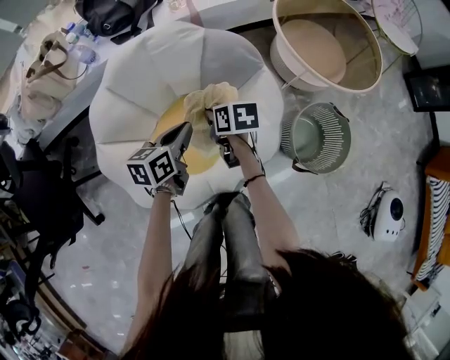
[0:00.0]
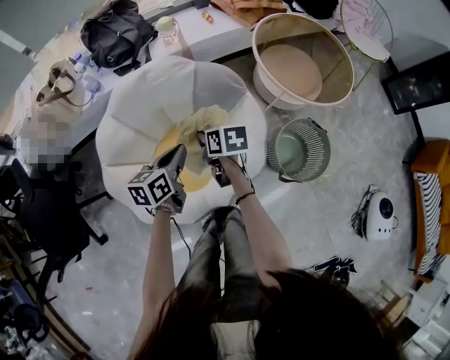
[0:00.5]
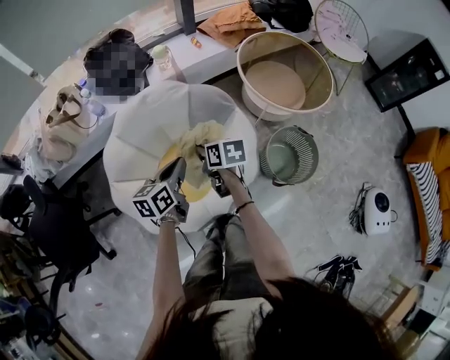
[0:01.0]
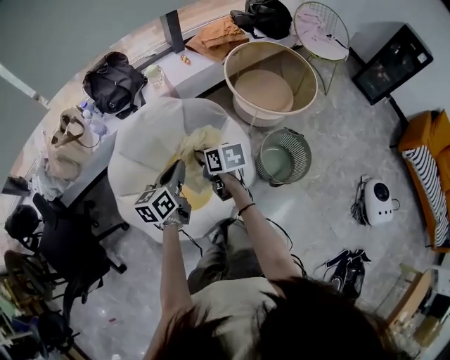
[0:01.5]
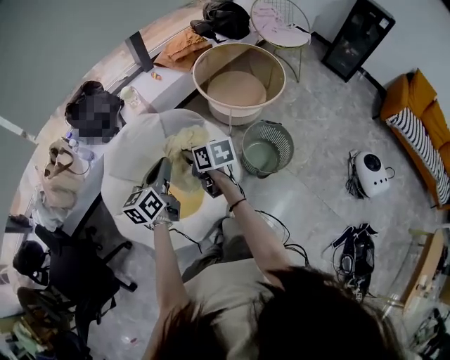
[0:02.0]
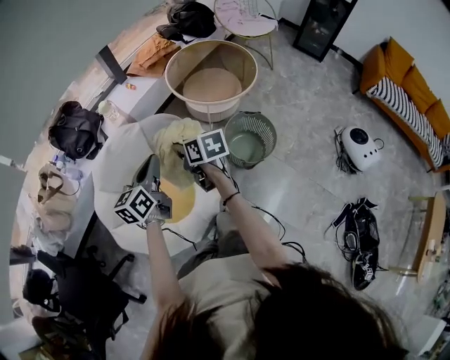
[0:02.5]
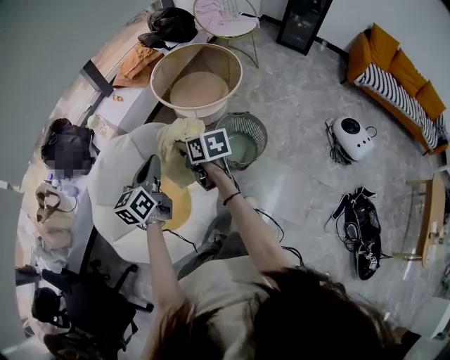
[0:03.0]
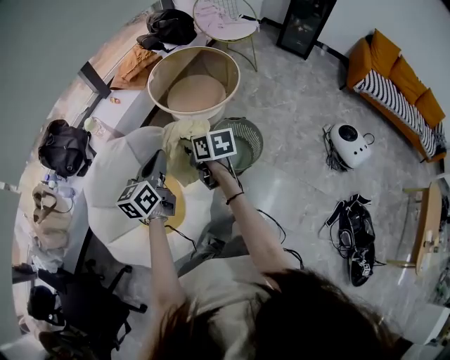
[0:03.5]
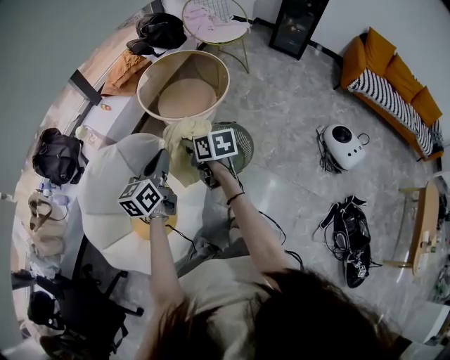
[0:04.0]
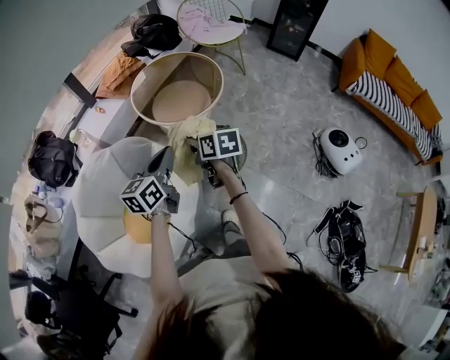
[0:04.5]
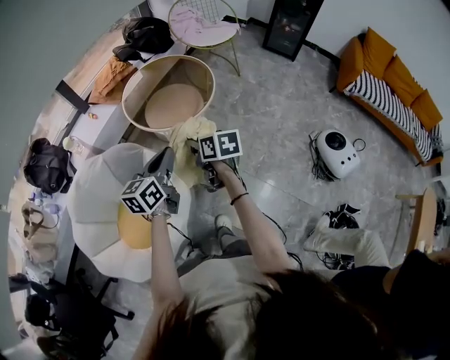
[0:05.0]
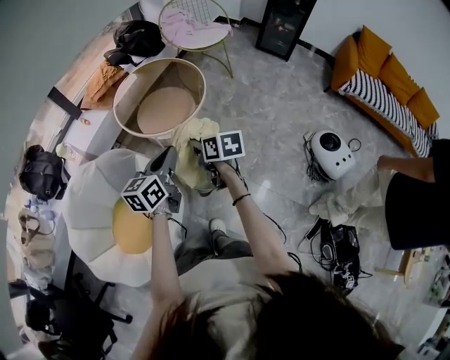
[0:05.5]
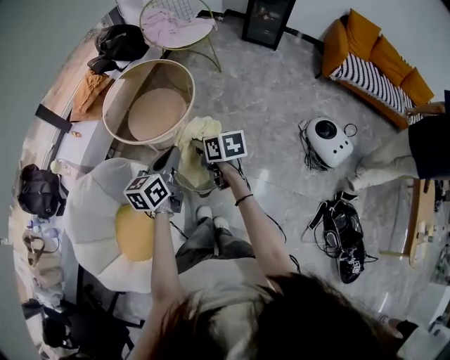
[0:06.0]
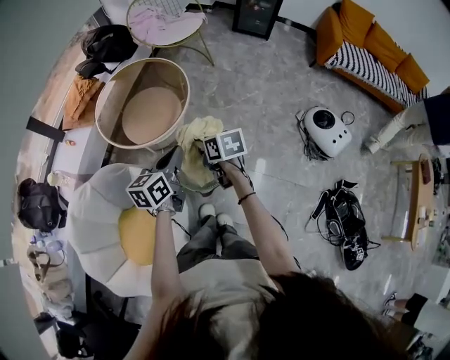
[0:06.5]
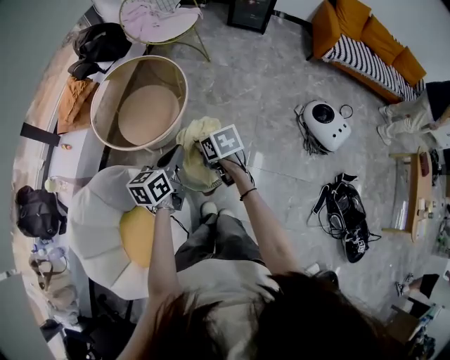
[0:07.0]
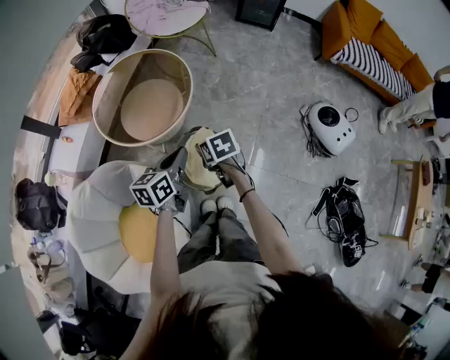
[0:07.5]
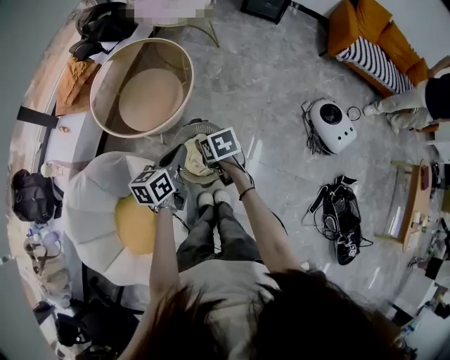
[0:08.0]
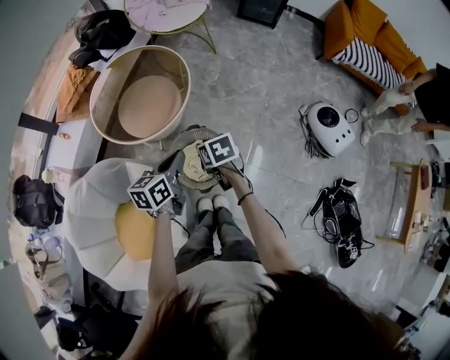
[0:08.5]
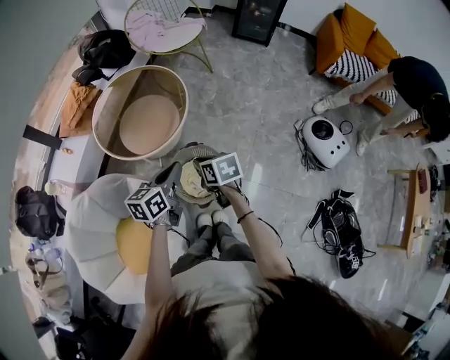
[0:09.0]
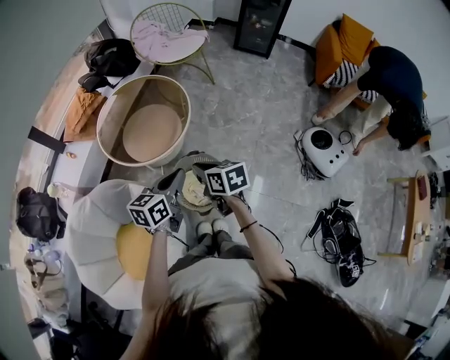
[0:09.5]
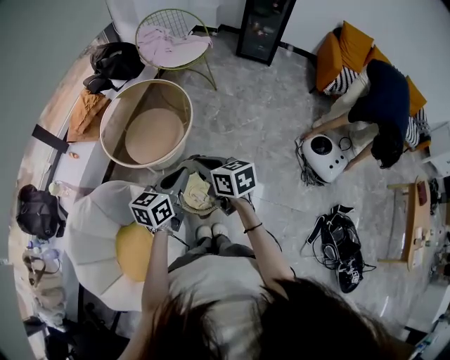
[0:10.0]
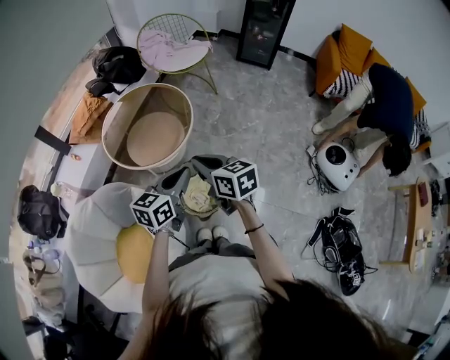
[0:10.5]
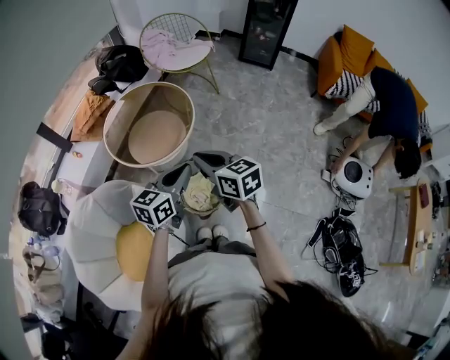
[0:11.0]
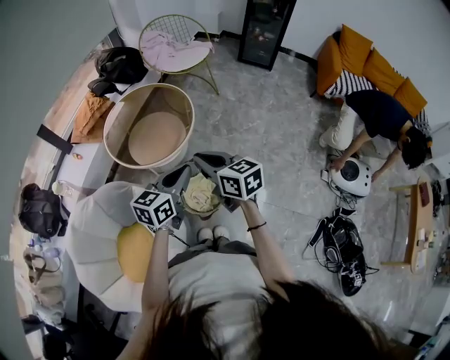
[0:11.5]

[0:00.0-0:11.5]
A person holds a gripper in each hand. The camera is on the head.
0:00.0 to 0:02.0: Both grippers travel together upward, some 25 cm. The right gripper rotates roughly 20 degrees, while the left gripper rotates some 20 degrees.
0:02.0 to 0:04.0: The grippers both shift to the right by roughly 20 cm.
0:04.0 to 0:06.0: The right gripper goes some 20 cm to the right, while the left gripper goes some 25 cm to the right and forward.
0:06.0 to 0:07.5: Both grippers travel together downward and forward, some 10 cm.
0:07.5 to 0:09.5: The right gripper heads upward, covering about 10 cm, swivels roughly 20 degrees, and closes its fingers, while the left gripper changes place by about 5 cm.
0:09.5 to 0:11.5: The right gripper shifts some 10 cm upward, and swivels some 20 degrees; the left gripper moves some 5 cm.

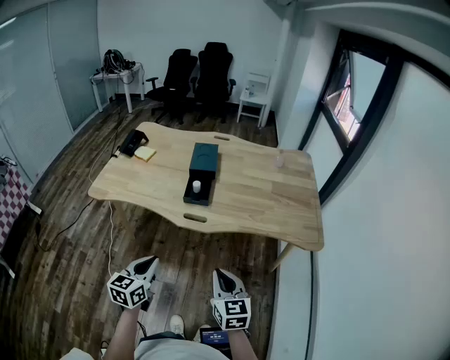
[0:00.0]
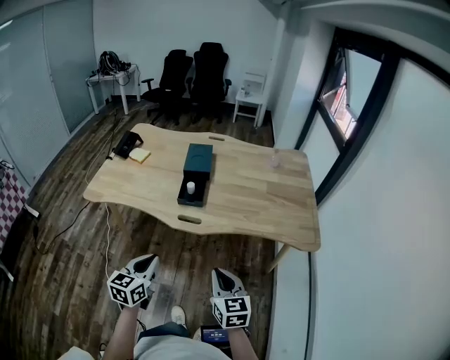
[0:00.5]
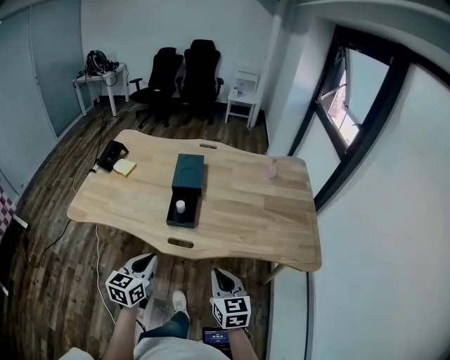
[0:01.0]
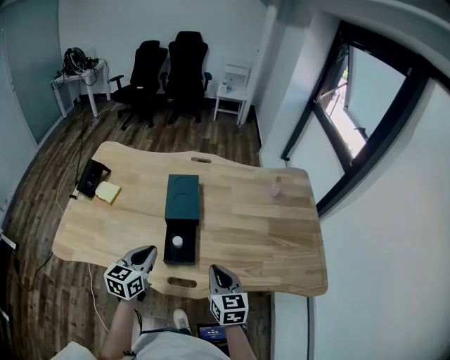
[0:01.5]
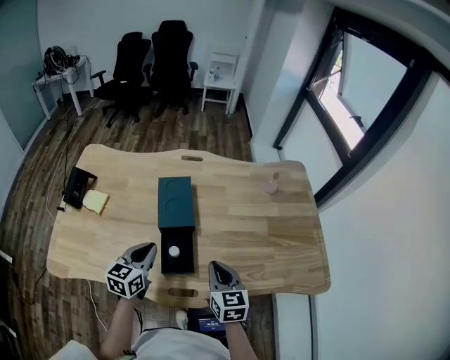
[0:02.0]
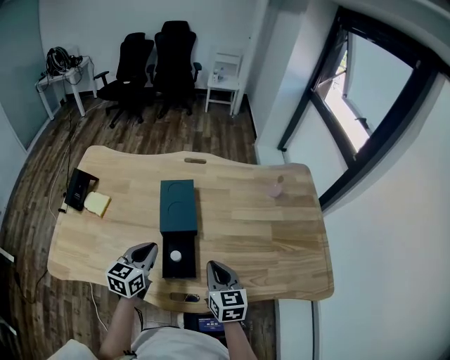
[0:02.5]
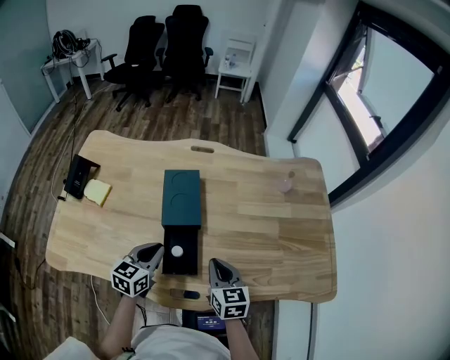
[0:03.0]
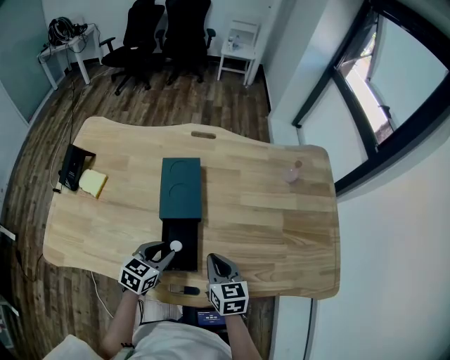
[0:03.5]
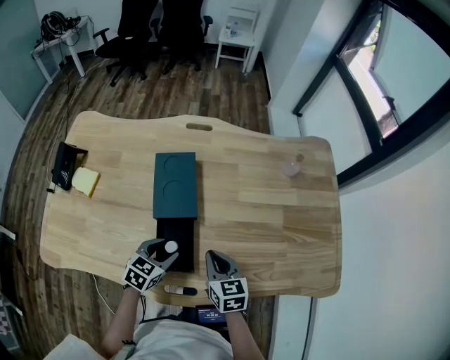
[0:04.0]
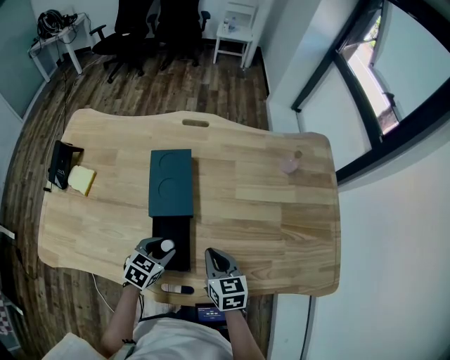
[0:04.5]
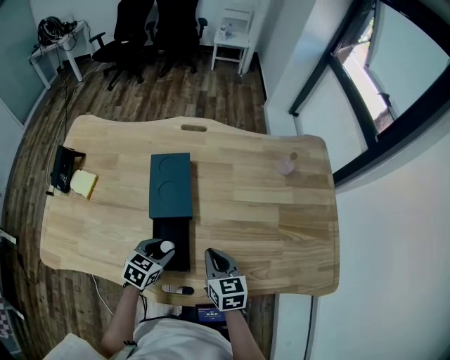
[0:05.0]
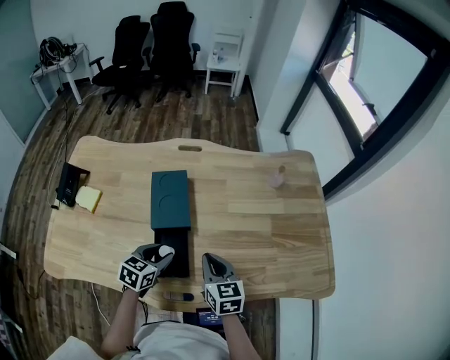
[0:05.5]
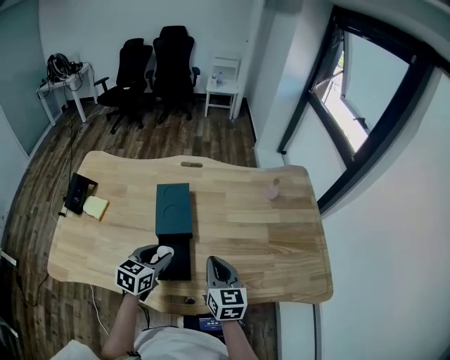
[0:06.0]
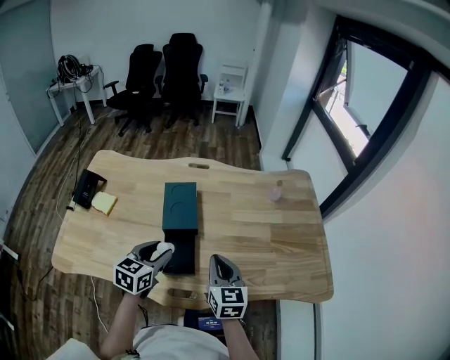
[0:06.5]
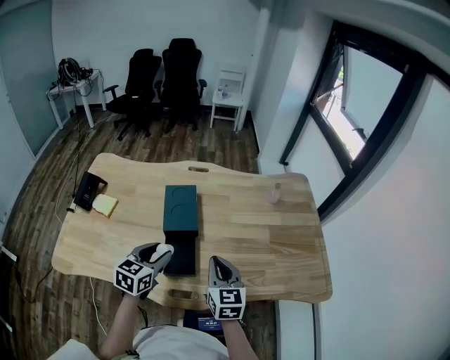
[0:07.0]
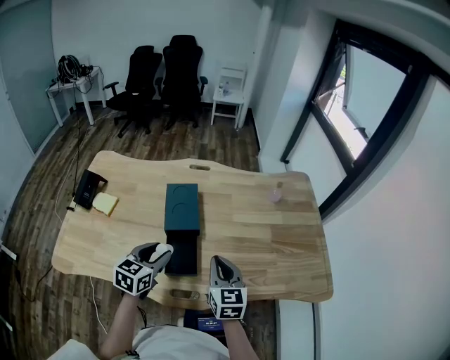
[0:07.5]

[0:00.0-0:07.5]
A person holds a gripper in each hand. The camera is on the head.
0:00.0 to 0:02.0: Both grippers are carried forward, roughly 40 cm.
0:02.0 to 0:04.0: The left gripper shifts approximately 15 cm downward, turns by about 30 degrees, and opens. Meanwhile the right gripper goes some 10 cm downward and forward.
0:04.0 to 0:05.5: The grippers both shift upward by some 5 cm.
0:05.5 to 0:07.5: The two grippers go about 10 cm upward.

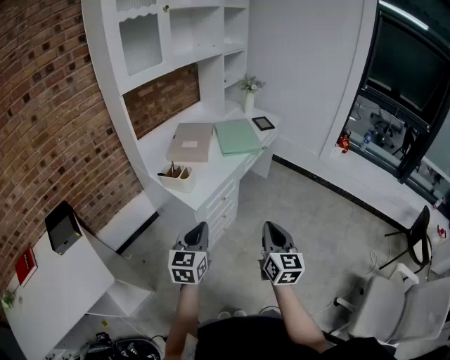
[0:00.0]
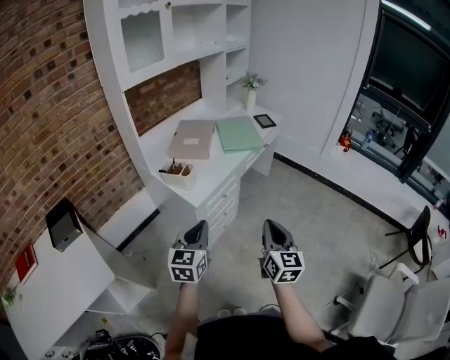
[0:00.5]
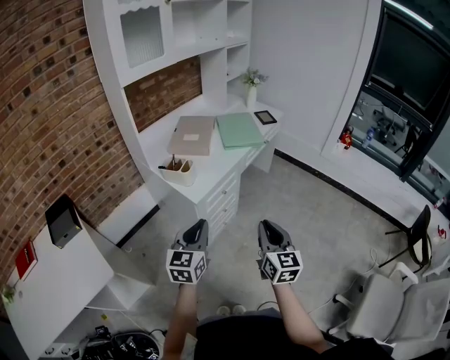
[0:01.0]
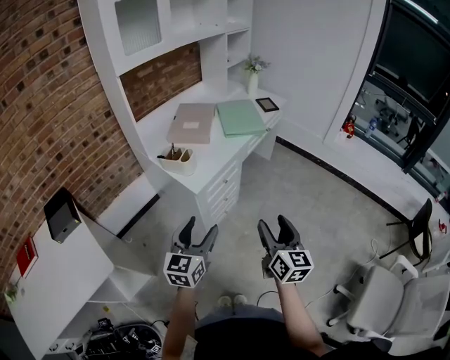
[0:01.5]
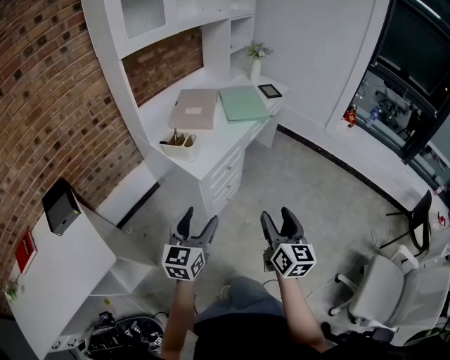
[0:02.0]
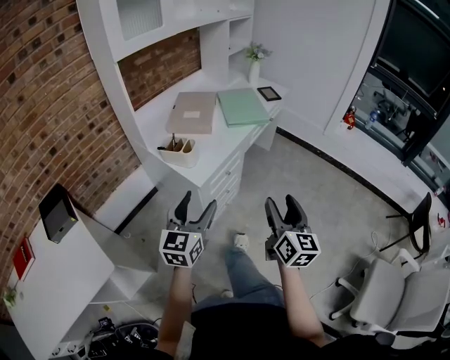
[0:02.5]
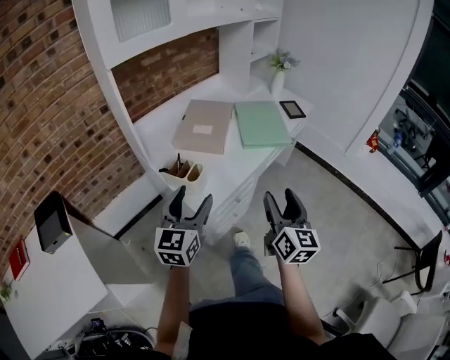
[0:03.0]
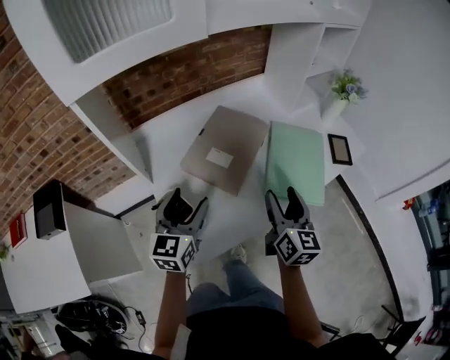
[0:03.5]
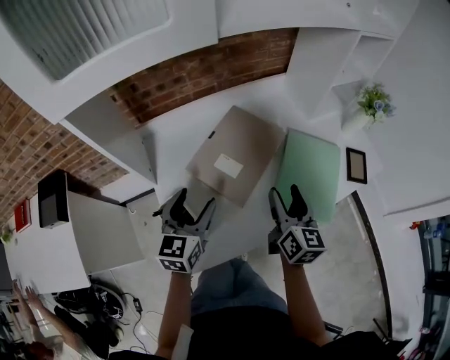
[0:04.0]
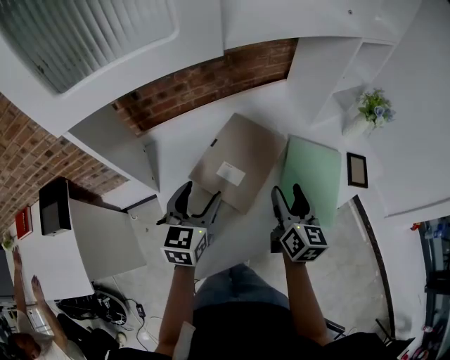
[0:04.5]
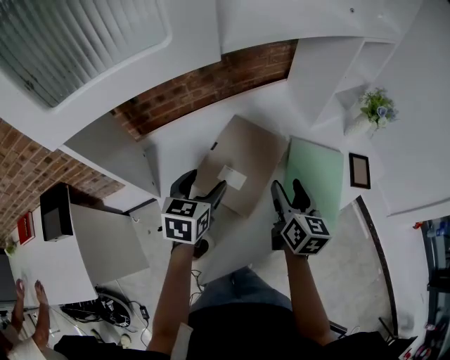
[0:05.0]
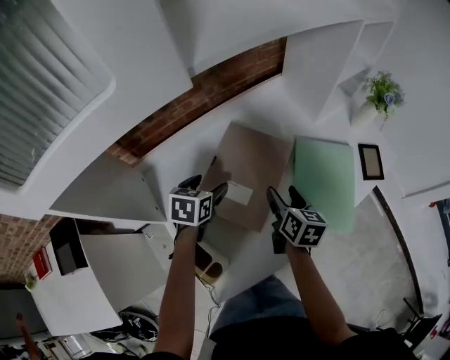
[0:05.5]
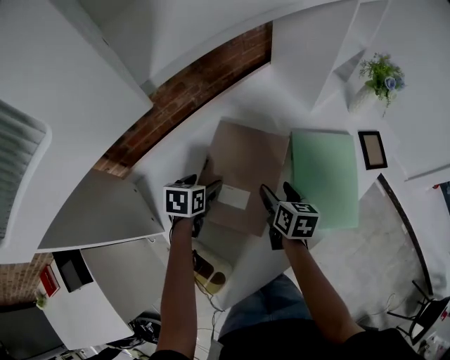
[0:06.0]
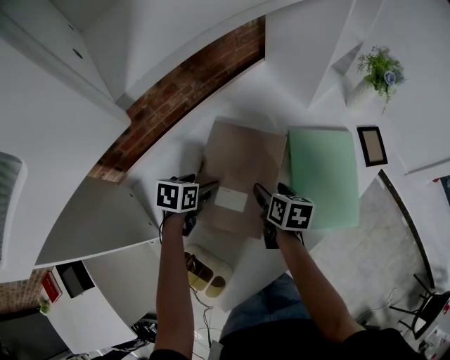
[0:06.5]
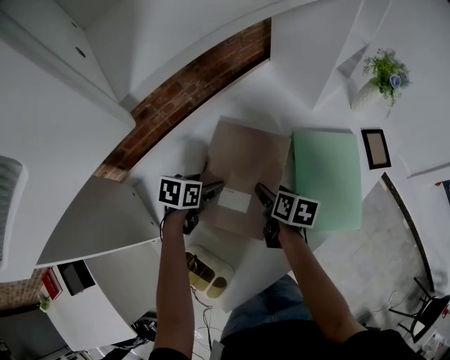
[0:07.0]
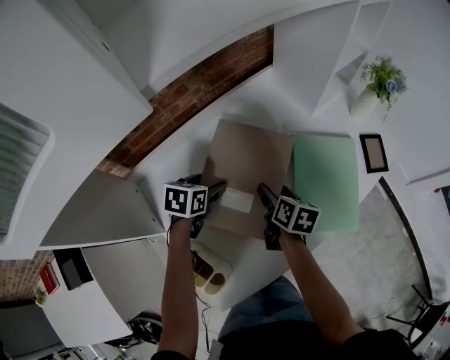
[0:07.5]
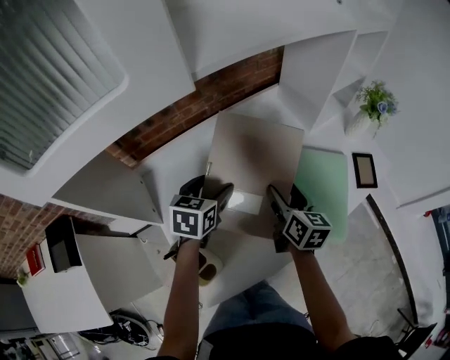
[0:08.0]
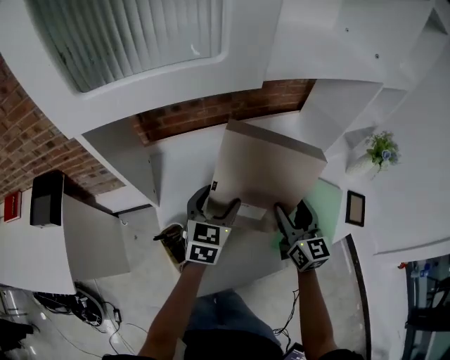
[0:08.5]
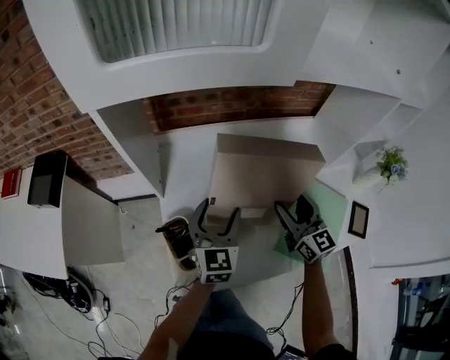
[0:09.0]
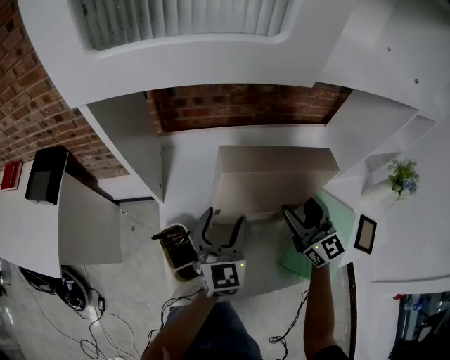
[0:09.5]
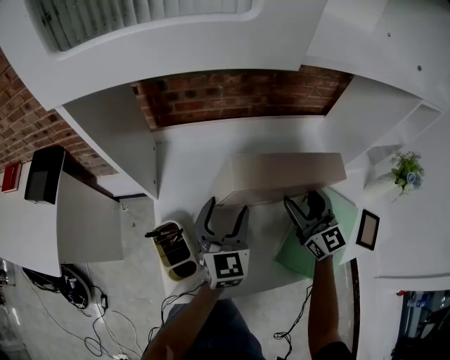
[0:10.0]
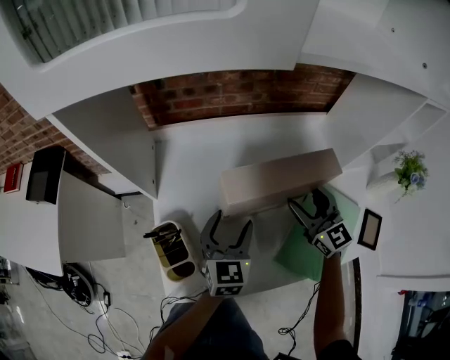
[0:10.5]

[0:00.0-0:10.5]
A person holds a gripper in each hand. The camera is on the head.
0:00.0 to 0:02.0: The right gripper opens, while the left gripper shifts by some 5 cm, and opens.
0:02.0 to 0:04.0: The two grippers travel together, about 60 cm. The right gripper turns by approximately 30 degrees. The left gripper swivels approximately 30 degrees.
0:04.0 to 0:06.5: The left gripper goes roughly 25 cm forward and downward, and angles its fingers downward, by about 40 degrees, while the right gripper moves downward and forward, approximately 20 cm, and tilts its fingers approximately 30 degrees downward.
0:06.5 to 0:08.5: The grippers both shift upward by approximately 15 cm. The right gripper tips its fingers upward by approximately 40 degrees, while the left gripper tips its fingers upward by approximately 30 degrees.
0:08.5 to 0:10.5: The left gripper moves downward, approximately 5 cm; the right gripper heads forward, covering about 5 cm, and rotates roughly 30 degrees.
